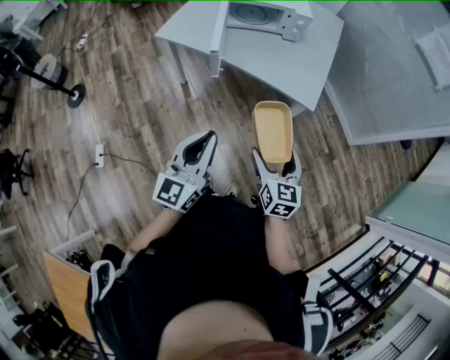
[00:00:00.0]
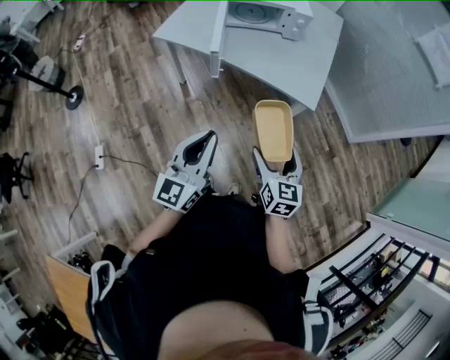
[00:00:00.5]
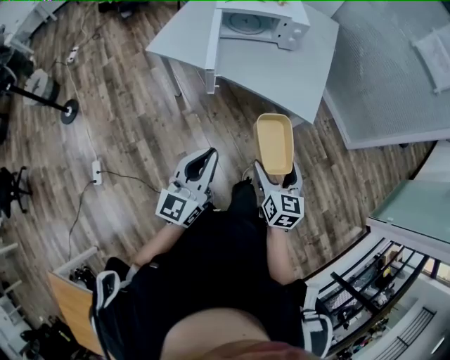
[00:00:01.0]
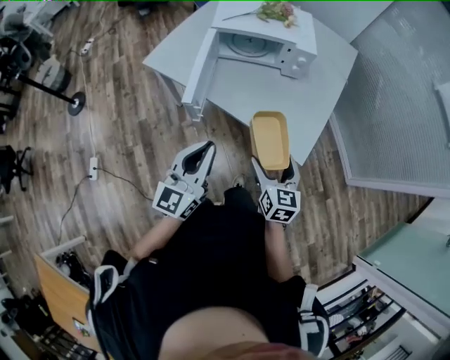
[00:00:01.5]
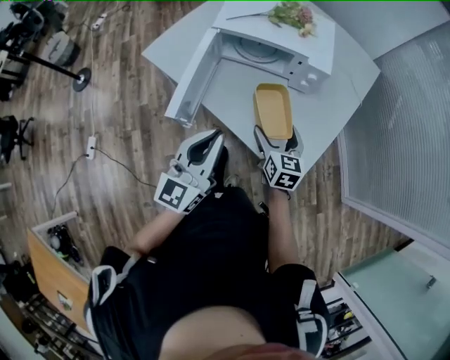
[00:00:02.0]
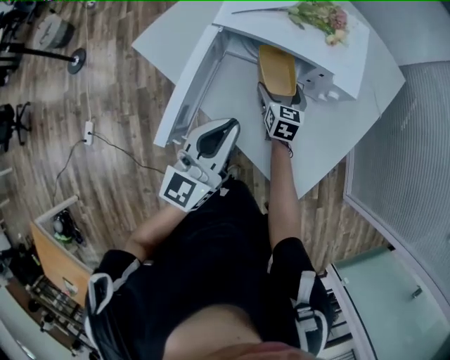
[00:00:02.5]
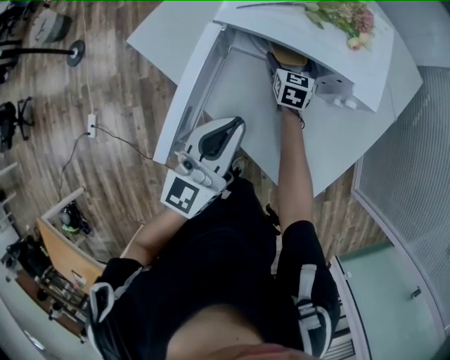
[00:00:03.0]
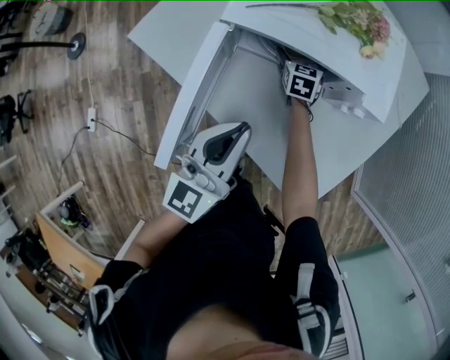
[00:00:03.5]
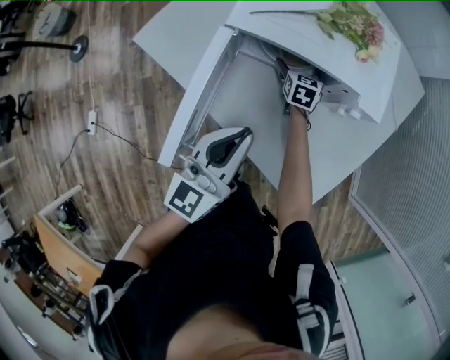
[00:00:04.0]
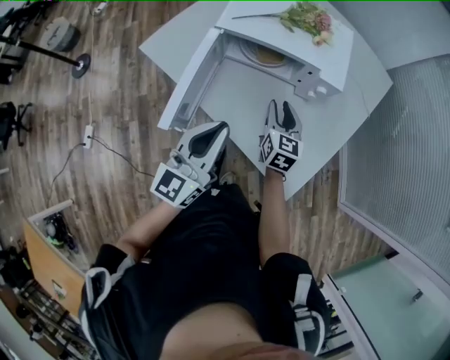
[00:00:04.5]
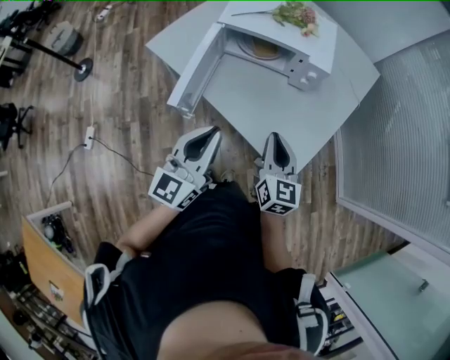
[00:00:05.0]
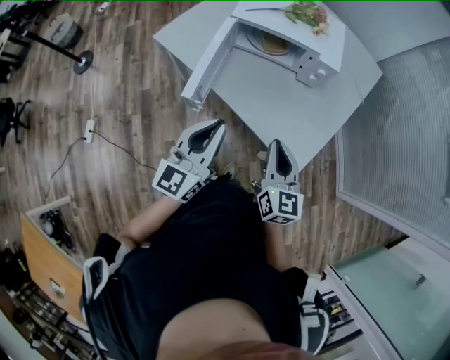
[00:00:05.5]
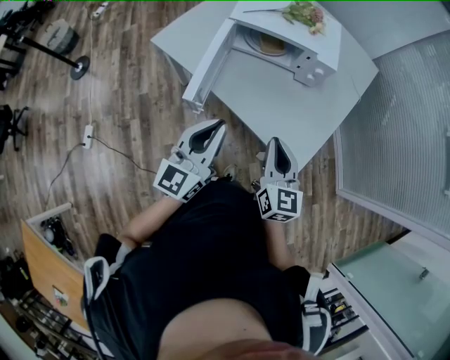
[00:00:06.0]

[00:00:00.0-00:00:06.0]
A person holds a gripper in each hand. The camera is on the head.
00:00:00.0 to 00:00:02.0: The two grippers travel together, forward, about 50 cm.
00:00:02.0 to 00:00:04.0: The right gripper moves forward and downward, some 40 cm. Meanwhile the left gripper moves forward and downward, approximately 20 cm.
00:00:04.0 to 00:00:06.0: The right gripper travels backward and upward by roughly 60 cm, swivels some 30 degrees, and closes its fingers. Meanwhile the left gripper goes approximately 25 cm backward and upward.

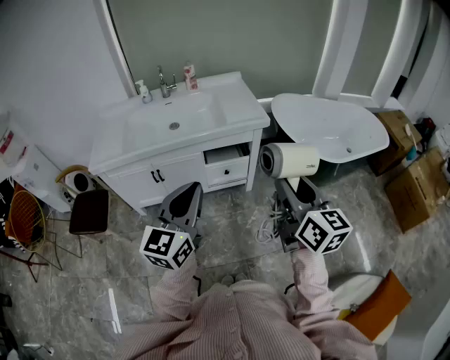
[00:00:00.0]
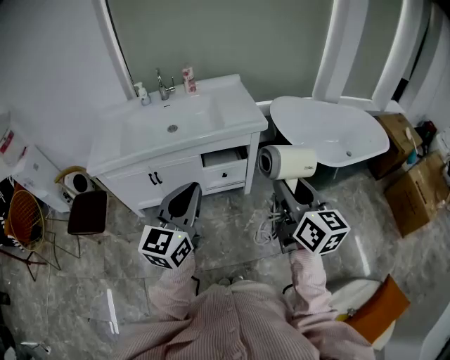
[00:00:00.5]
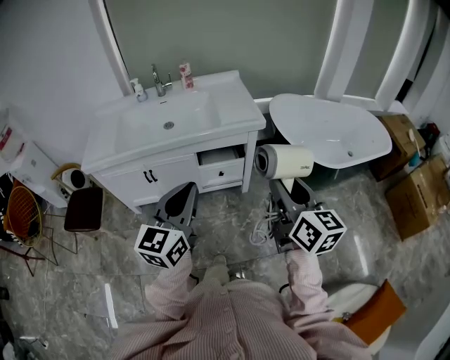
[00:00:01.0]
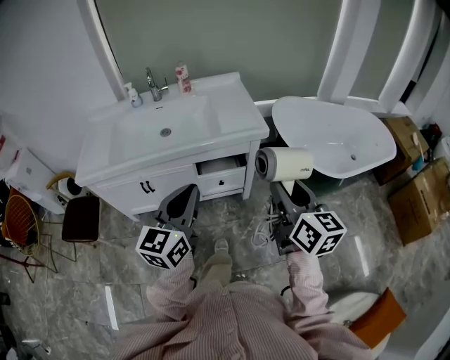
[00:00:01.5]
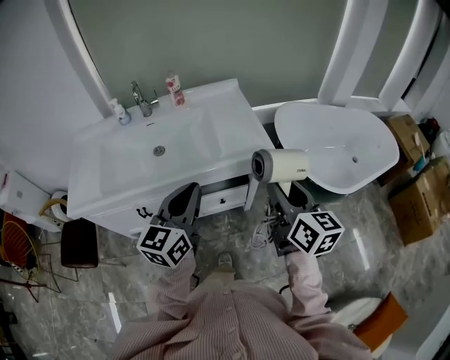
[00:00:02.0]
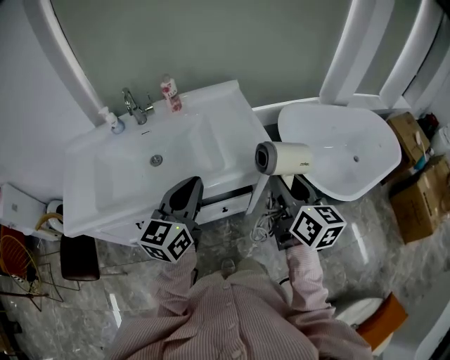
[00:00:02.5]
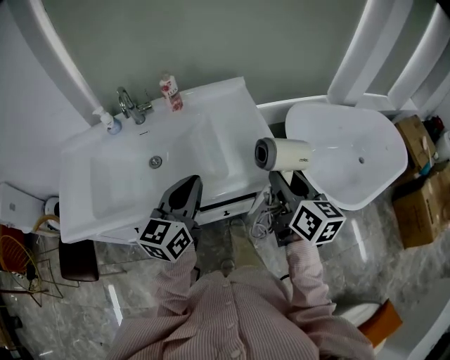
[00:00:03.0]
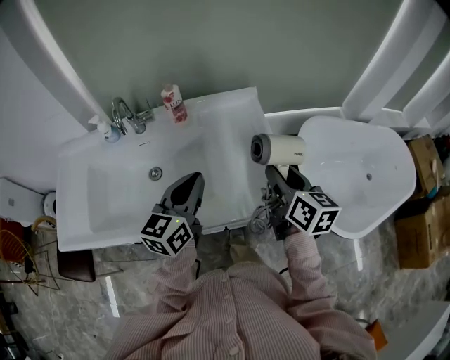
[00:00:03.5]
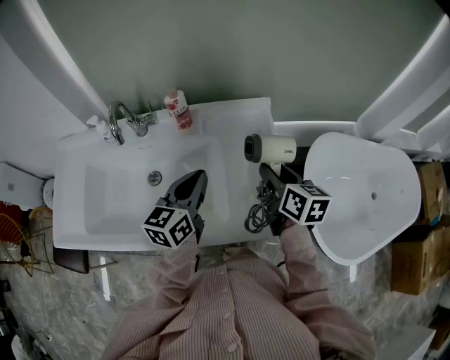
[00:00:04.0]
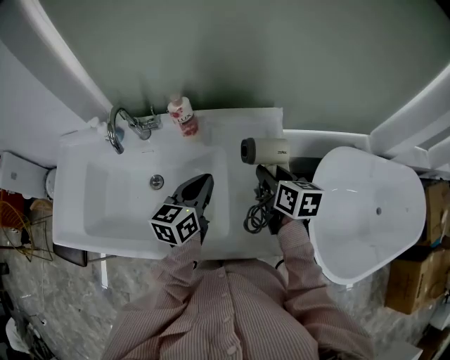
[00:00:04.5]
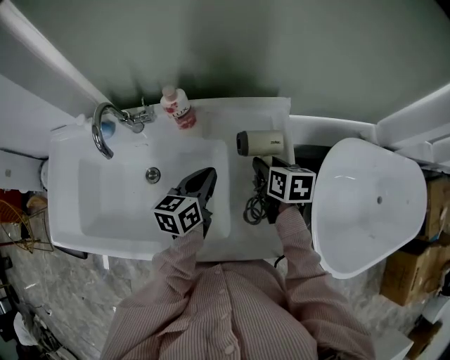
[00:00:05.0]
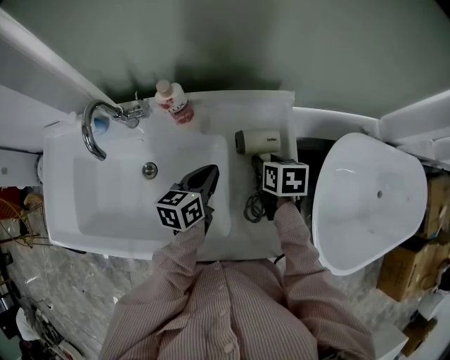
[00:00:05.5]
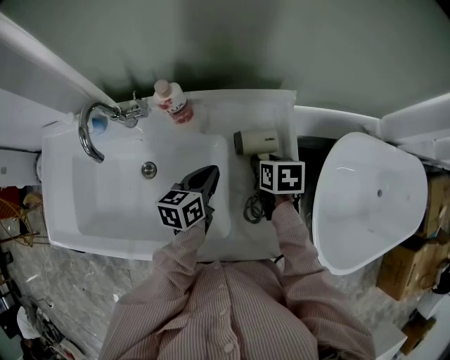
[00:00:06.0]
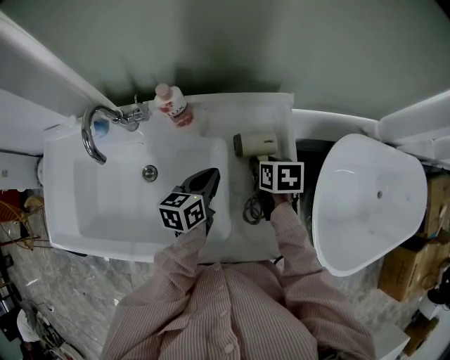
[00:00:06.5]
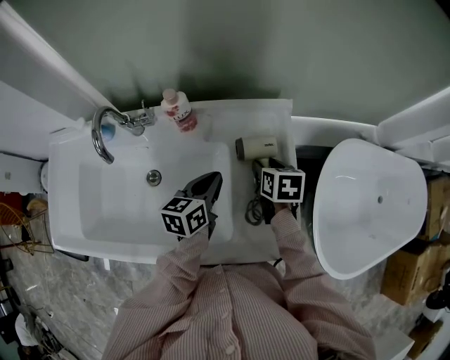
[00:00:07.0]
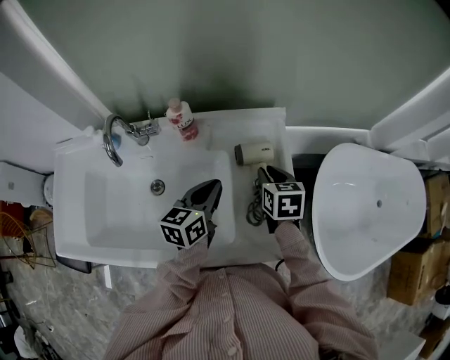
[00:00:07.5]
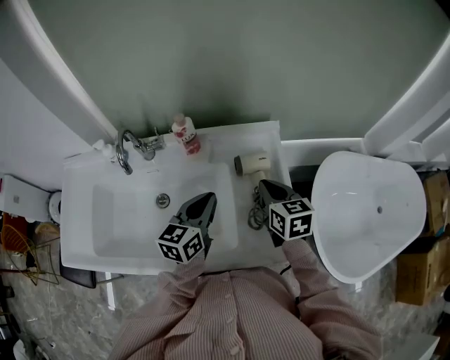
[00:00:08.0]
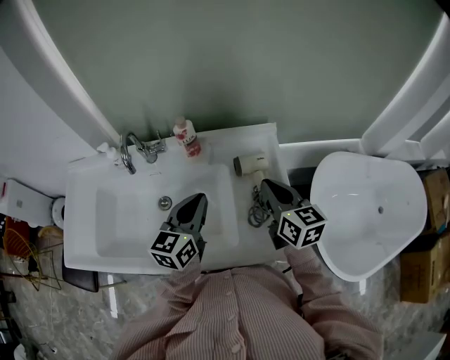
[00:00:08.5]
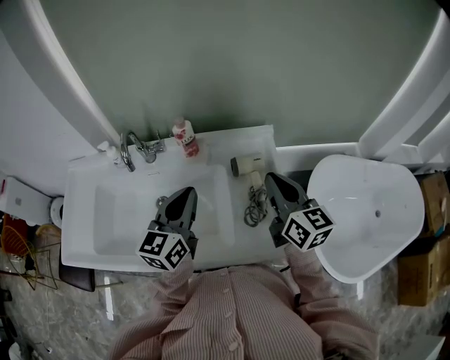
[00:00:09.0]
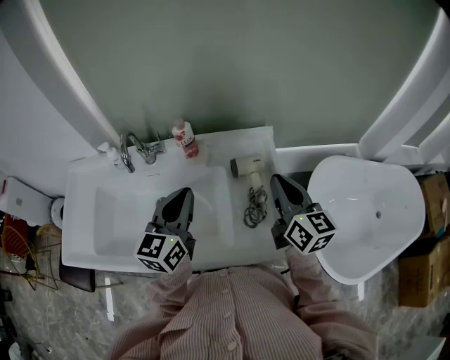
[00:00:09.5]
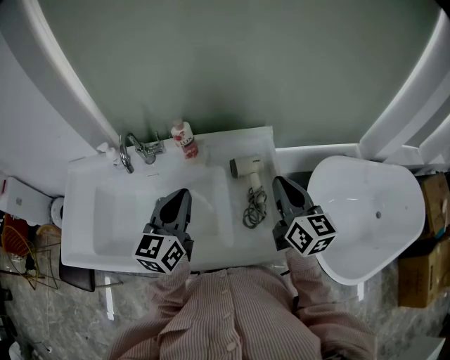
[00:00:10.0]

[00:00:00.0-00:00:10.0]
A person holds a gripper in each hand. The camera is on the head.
00:00:00.0 to 00:00:02.0: Both grippers travel together forward, approximately 25 cm.
00:00:02.0 to 00:00:04.0: The two grippers go about 40 cm forward. The right gripper changes its angle by roughly 20 degrees.
00:00:04.0 to 00:00:06.0: The two grippers go roughly 20 cm downward and forward. The left gripper rotates some 20 degrees; the right gripper tilts its fingers roughly 30 degrees downward.
00:00:06.0 to 00:00:08.0: The two grippers go about 15 cm upward and backward. The left gripper changes its angle by about 20 degrees. Meanwhile the right gripper rotates approximately 30 degrees, and closes up.
00:00:08.0 to 00:00:10.0: Both grippers move upward, some 10 cm. The right gripper swivels some 30 degrees.

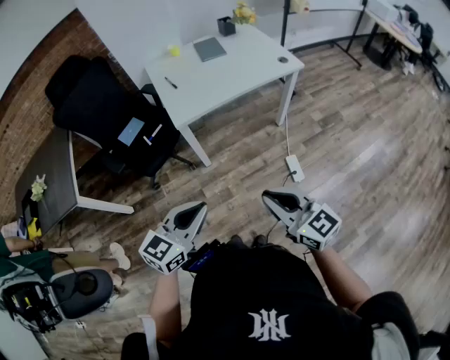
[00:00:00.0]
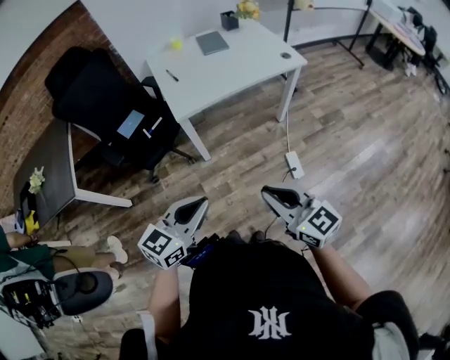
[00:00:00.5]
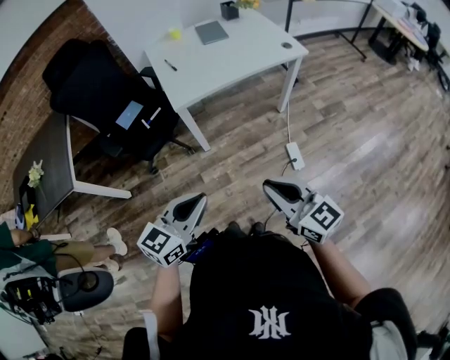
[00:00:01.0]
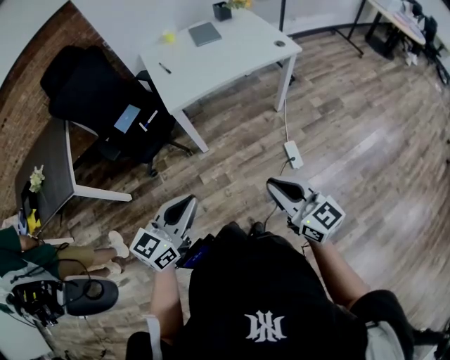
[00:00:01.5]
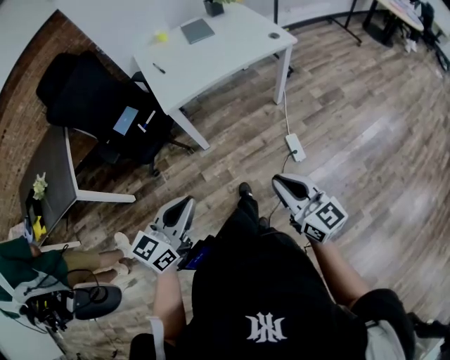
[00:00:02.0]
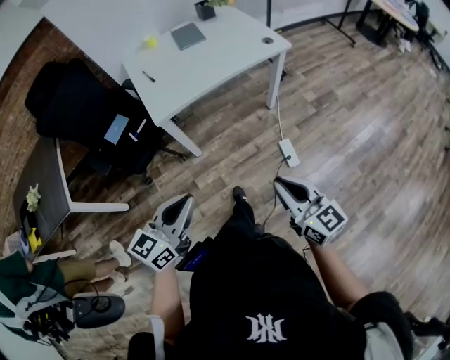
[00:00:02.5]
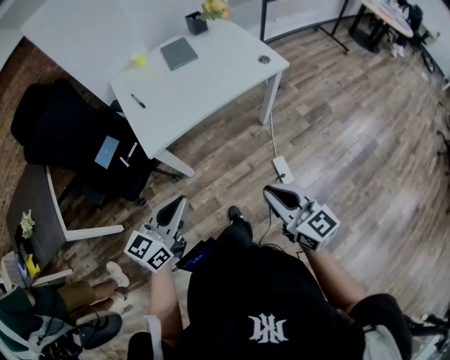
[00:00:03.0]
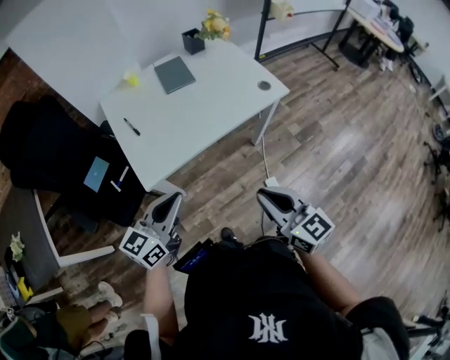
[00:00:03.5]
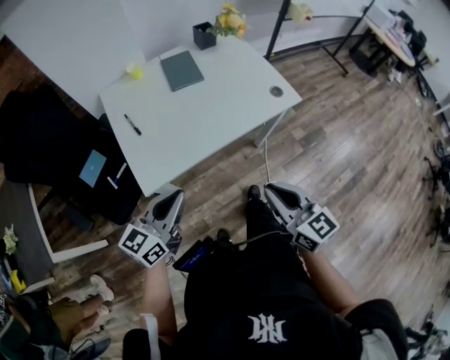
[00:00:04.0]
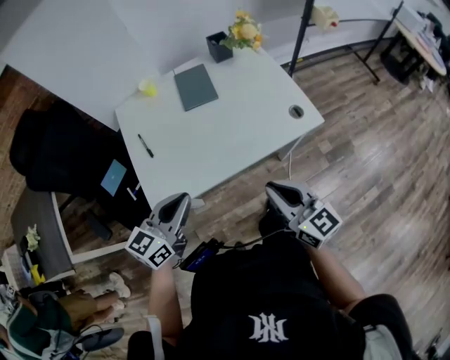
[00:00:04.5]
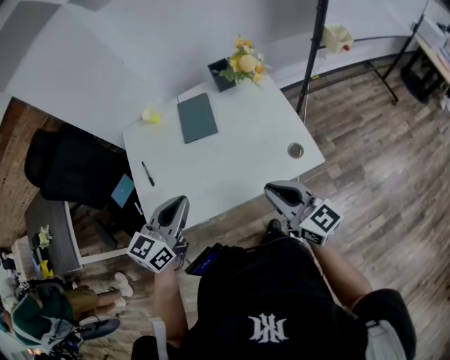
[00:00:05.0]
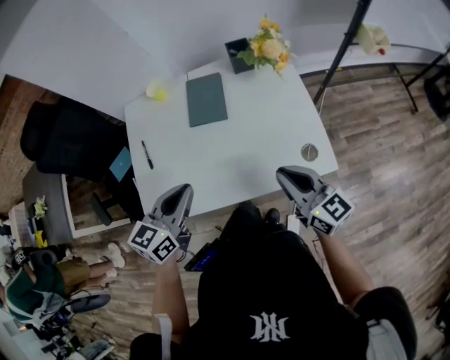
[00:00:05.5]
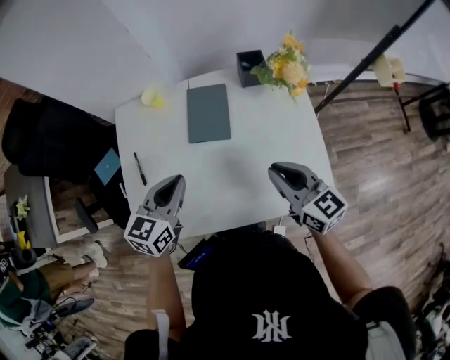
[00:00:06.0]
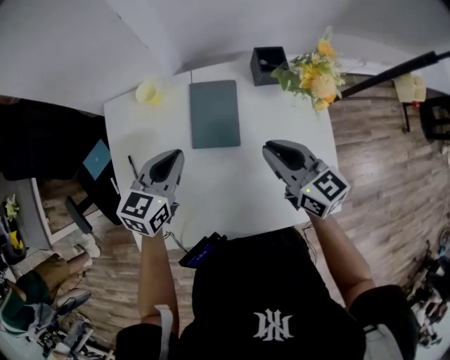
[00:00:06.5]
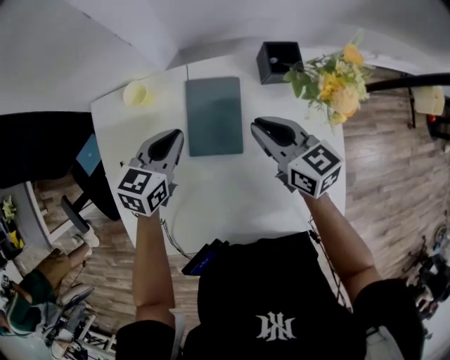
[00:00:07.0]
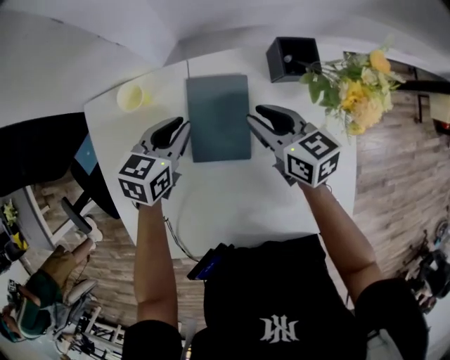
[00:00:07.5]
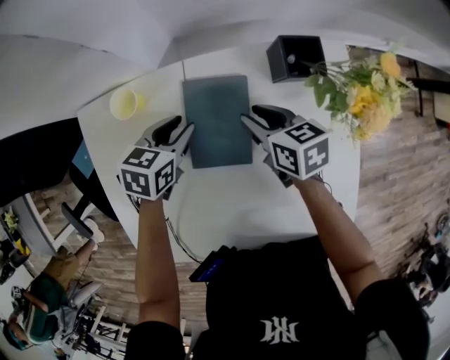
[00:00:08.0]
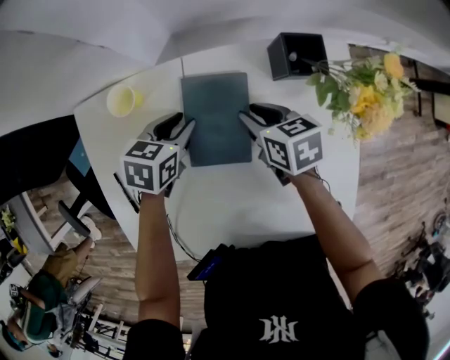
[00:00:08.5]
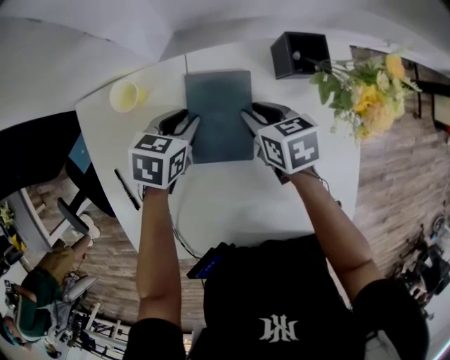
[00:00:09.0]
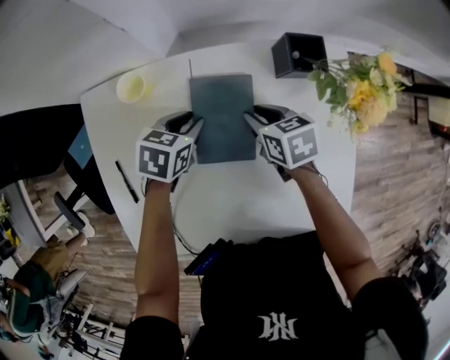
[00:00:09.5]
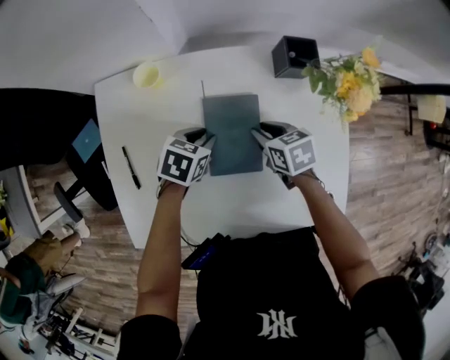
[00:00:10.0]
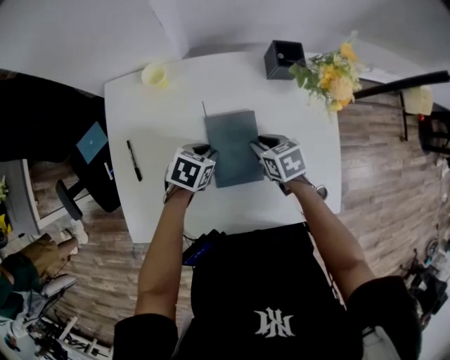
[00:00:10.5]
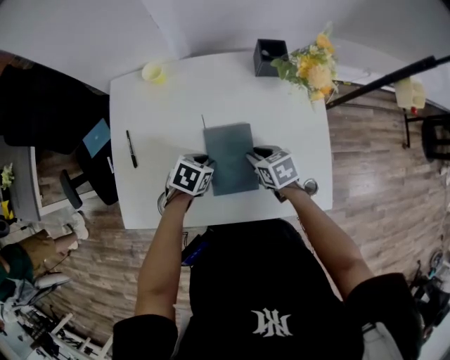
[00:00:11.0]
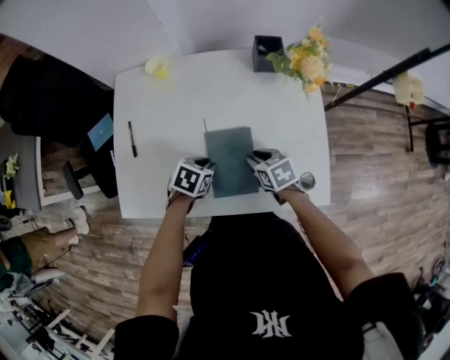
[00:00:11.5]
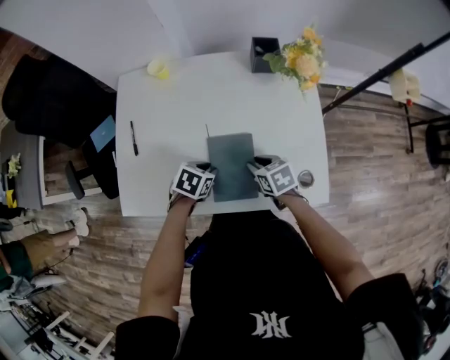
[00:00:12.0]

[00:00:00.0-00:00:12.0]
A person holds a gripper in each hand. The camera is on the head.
00:00:00.0 to 00:00:02.0: The right gripper heads to the right, covering roughly 5 cm.
00:00:02.0 to 00:00:04.0: Both grippers travel together forward, about 35 cm.
00:00:04.0 to 00:00:06.0: The right gripper moves some 40 cm, and rotates roughly 30 degrees. Meanwhile the left gripper shifts by some 35 cm, and turns by approximately 30 degrees.
00:00:06.0 to 00:00:08.0: The two grippers go some 30 cm forward and downward. The left gripper changes its angle by some 30 degrees, and opens. The right gripper rotates some 30 degrees, and opens up.
00:00:08.0 to 00:00:10.0: The two grippers go roughly 10 cm backward.
00:00:10.0 to 00:00:12.0: The grippers both shift backward by about 20 cm.
